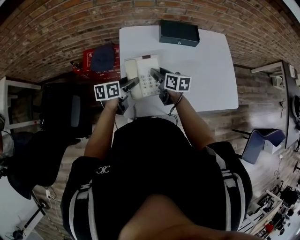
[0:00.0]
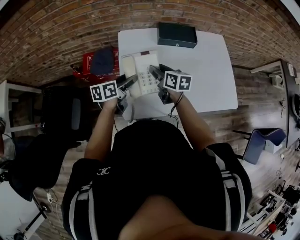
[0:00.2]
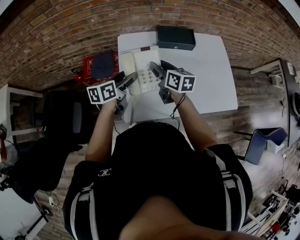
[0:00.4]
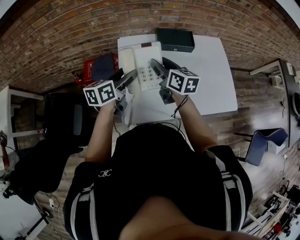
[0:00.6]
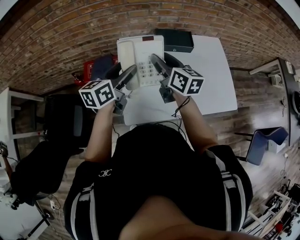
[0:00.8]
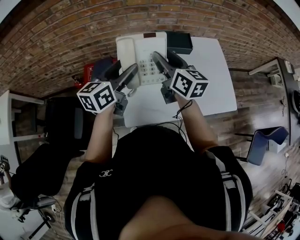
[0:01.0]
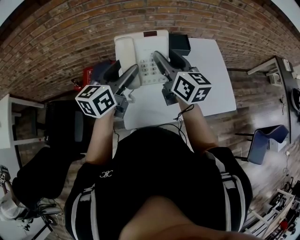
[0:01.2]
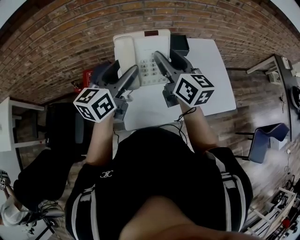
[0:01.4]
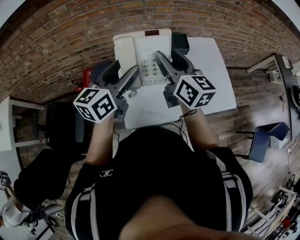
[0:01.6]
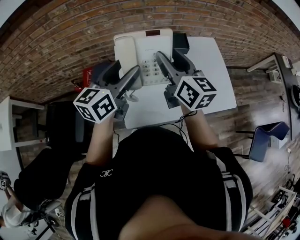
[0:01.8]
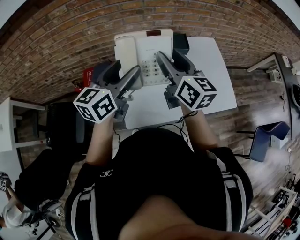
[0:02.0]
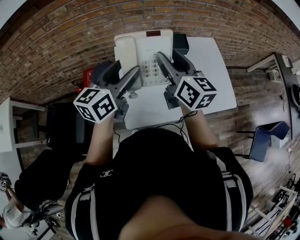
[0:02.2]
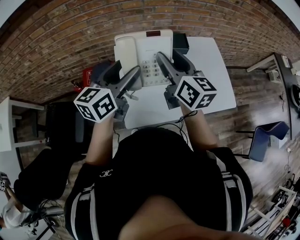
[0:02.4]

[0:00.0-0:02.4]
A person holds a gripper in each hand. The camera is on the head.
0:00.0 to 0:01.2: The two grippers go some 25 cm upward. The left gripper changes its angle by approximately 30 degrees. Meanwhile the right gripper changes its angle by about 30 degrees.
0:01.2 to 0:02.4: The grippers make only small movements.

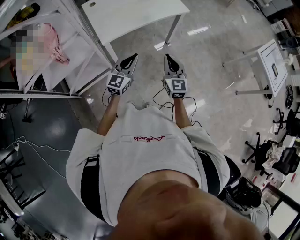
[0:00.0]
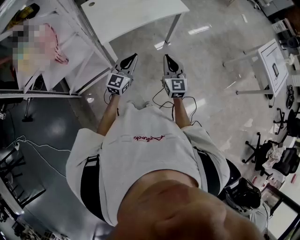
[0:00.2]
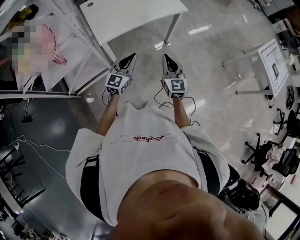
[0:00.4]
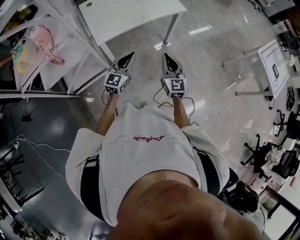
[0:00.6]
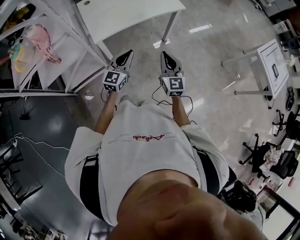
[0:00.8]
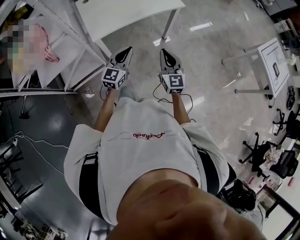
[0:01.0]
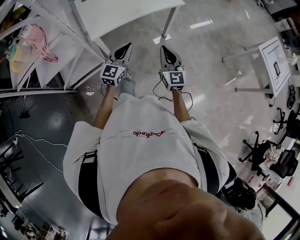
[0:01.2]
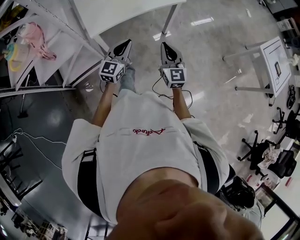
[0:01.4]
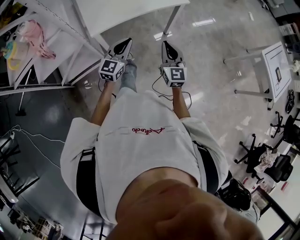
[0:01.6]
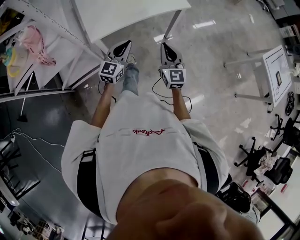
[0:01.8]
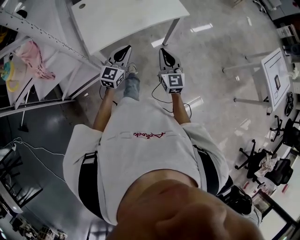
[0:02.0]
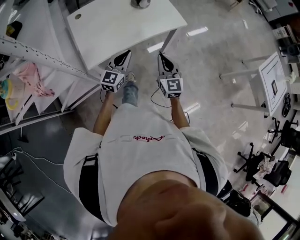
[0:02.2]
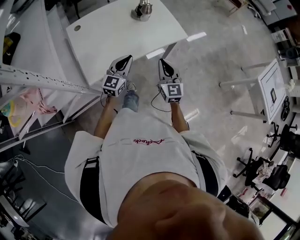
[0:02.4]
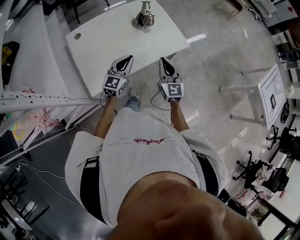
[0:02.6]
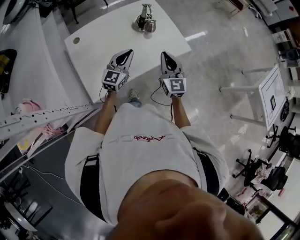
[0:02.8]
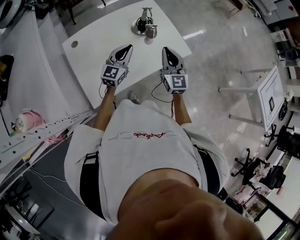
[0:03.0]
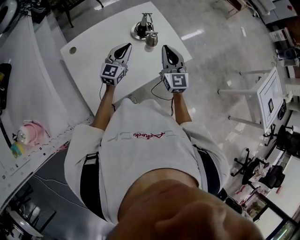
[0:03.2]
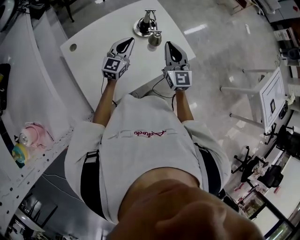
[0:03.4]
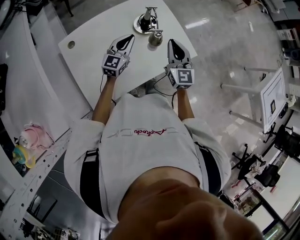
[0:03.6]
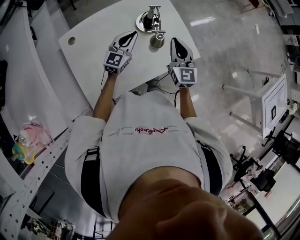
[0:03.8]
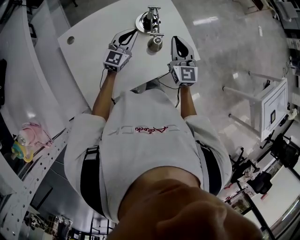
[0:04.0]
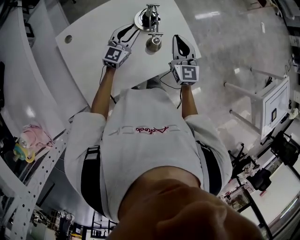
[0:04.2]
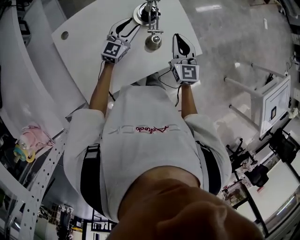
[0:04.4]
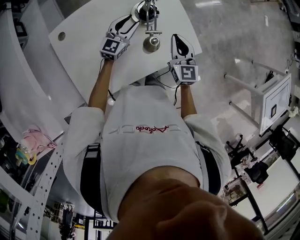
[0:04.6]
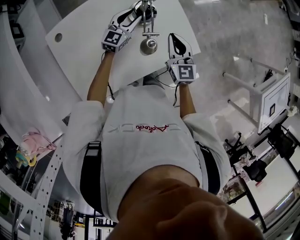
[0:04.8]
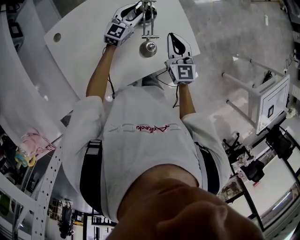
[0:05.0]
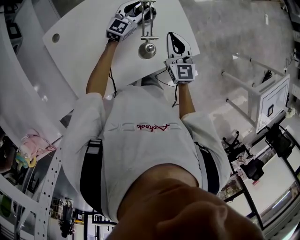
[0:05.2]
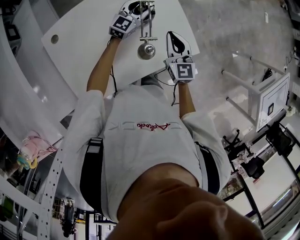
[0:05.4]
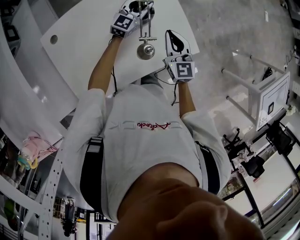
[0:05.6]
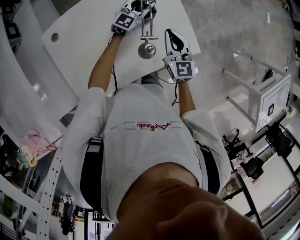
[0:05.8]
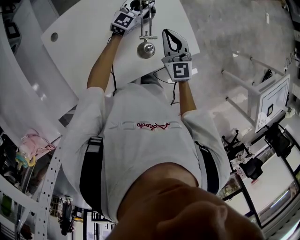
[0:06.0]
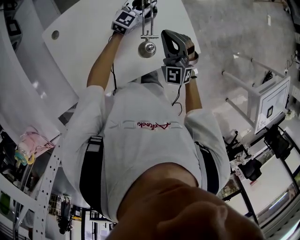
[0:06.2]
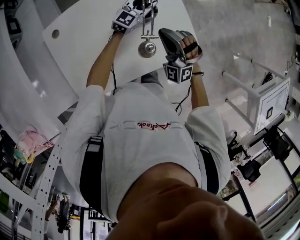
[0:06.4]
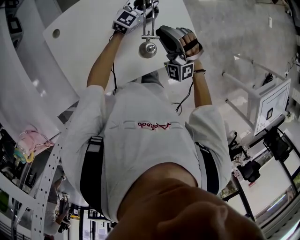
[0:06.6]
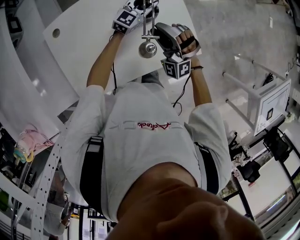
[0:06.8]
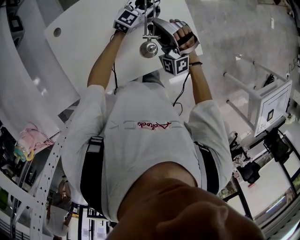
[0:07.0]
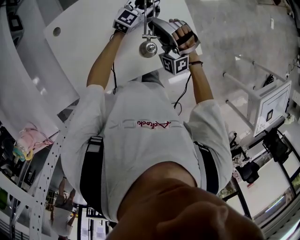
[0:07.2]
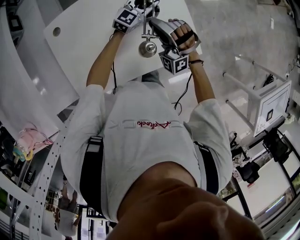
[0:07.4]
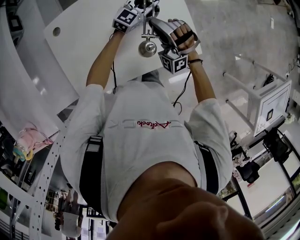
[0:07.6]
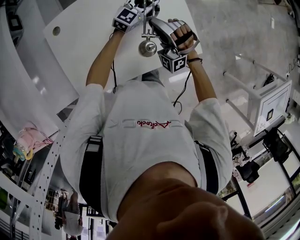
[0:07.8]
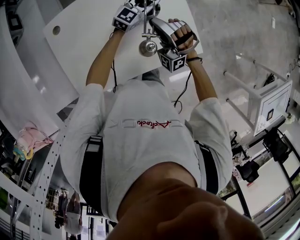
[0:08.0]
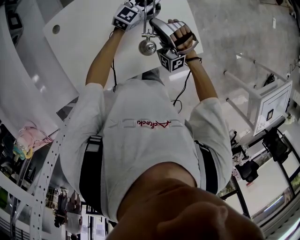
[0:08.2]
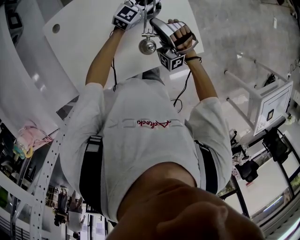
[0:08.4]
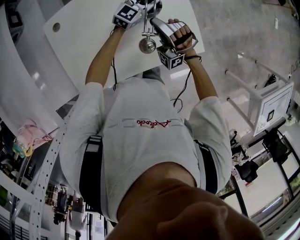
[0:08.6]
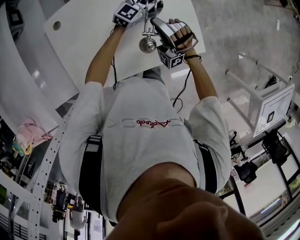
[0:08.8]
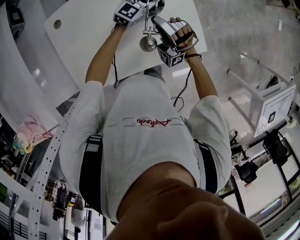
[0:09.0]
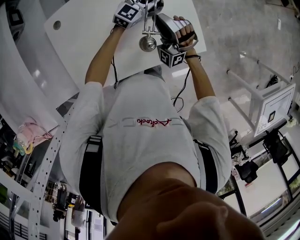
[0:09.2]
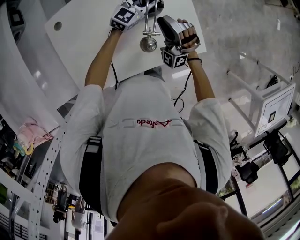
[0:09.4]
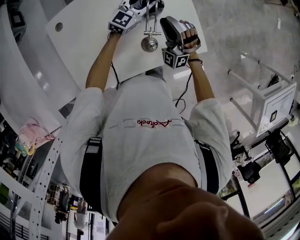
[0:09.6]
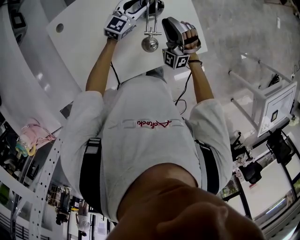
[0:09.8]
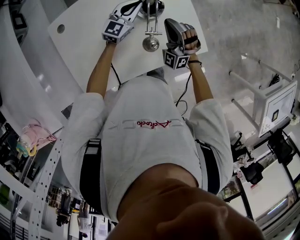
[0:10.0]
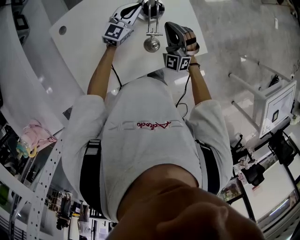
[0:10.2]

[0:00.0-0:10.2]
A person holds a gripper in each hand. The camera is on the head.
0:00.0 to 0:01.4: The right gripper ends up approximately 5 cm from where it was, while the left gripper moves forward, some 5 cm.
0:01.4 to 0:03.0: Both grippers move forward, some 40 cm.
0:03.0 to 0:04.4: Both grippers travel together forward and downward, approximately 15 cm. The left gripper opens.
0:04.4 to 0:05.8: The left gripper travels forward and to the right by about 15 cm.
0:05.8 to 0:07.2: The right gripper heads to the left, covering about 10 cm, rotates around the line of its fingers by approximately 80 degrees, counterclockwise from behind, and opens its fingers.
0:07.2 to 0:08.8: The right gripper closes.
0:08.8 to 0:10.2: The left gripper shifts approximately 10 cm to the left and backward, and closes up; the right gripper moves approximately 5 cm, and turns by approximately 40 degrees.

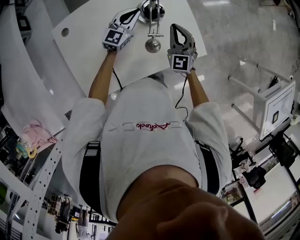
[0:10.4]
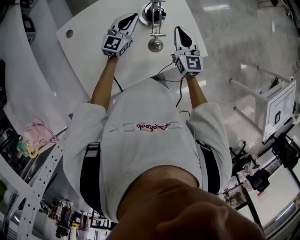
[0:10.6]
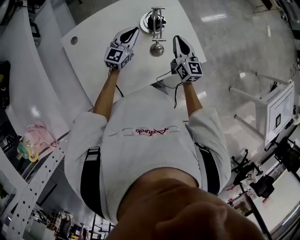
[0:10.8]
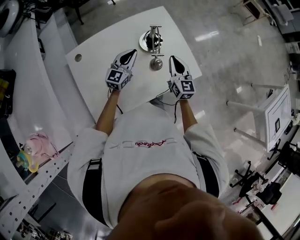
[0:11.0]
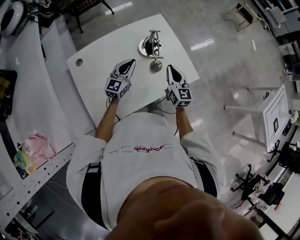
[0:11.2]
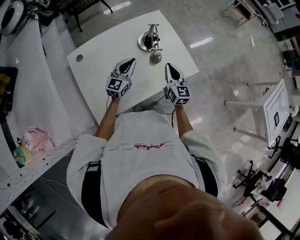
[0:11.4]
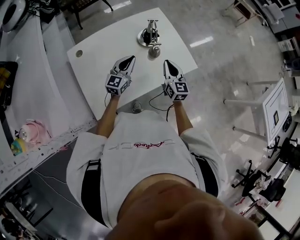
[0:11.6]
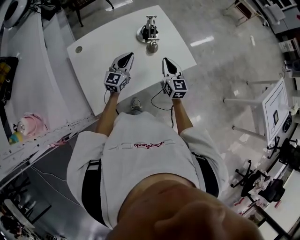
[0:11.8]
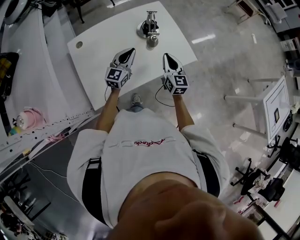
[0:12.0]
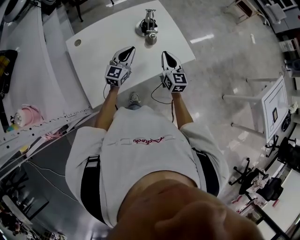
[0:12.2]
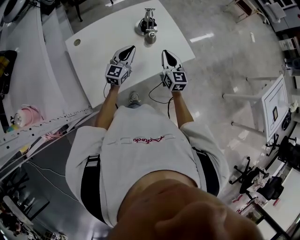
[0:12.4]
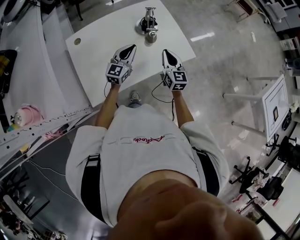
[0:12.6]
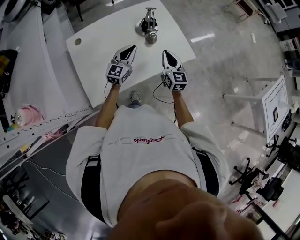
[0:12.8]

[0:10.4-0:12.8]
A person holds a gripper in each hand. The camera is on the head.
0:10.4 to 0:11.6: The grippers both shift backward by some 15 cm. The right gripper rotates roughly 30 degrees.
0:11.6 to 0:12.8: The grippers move only a little.

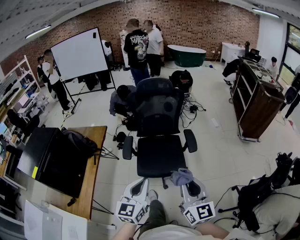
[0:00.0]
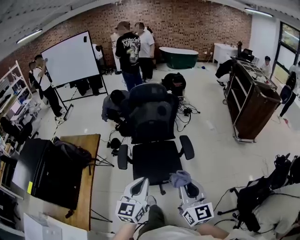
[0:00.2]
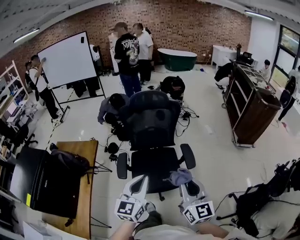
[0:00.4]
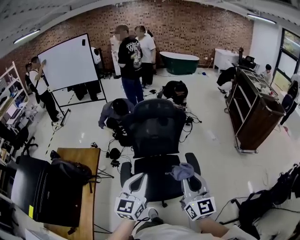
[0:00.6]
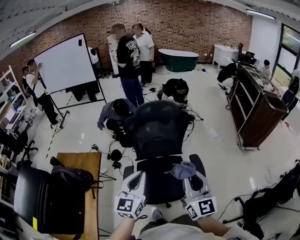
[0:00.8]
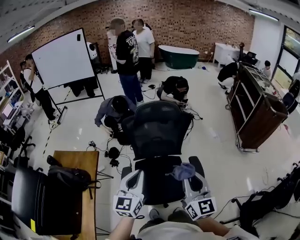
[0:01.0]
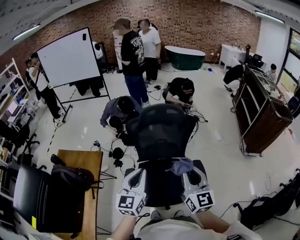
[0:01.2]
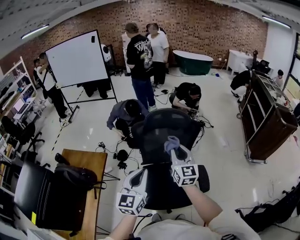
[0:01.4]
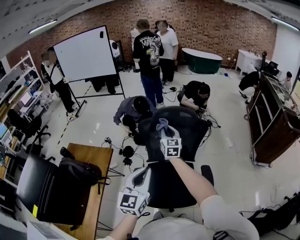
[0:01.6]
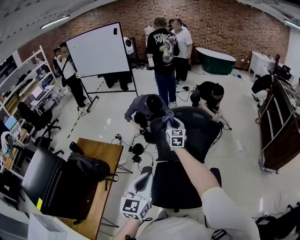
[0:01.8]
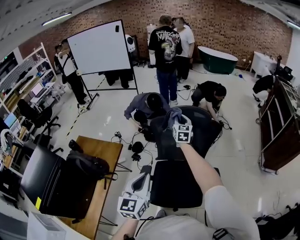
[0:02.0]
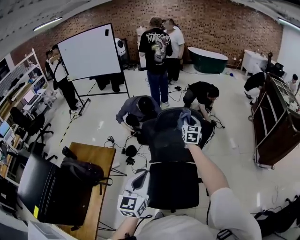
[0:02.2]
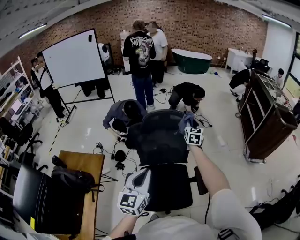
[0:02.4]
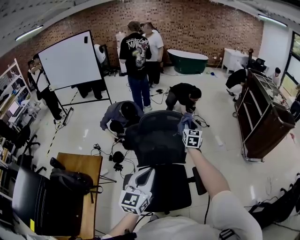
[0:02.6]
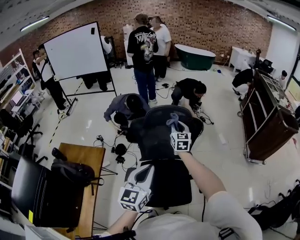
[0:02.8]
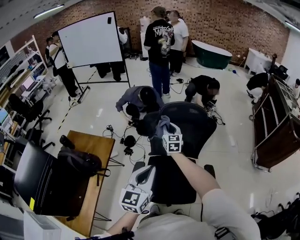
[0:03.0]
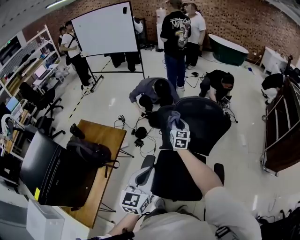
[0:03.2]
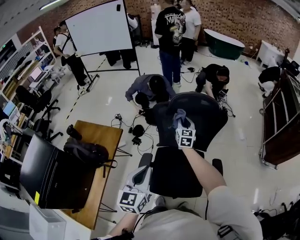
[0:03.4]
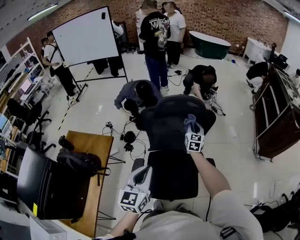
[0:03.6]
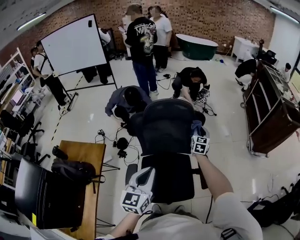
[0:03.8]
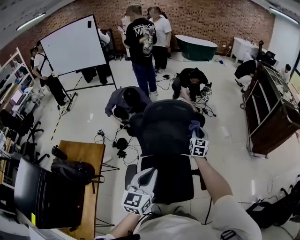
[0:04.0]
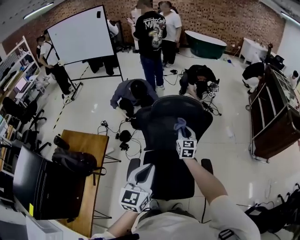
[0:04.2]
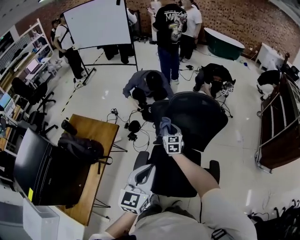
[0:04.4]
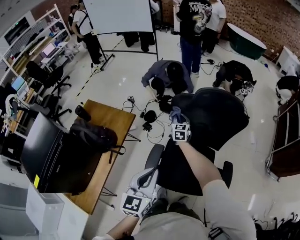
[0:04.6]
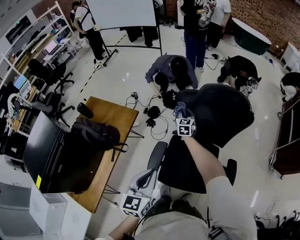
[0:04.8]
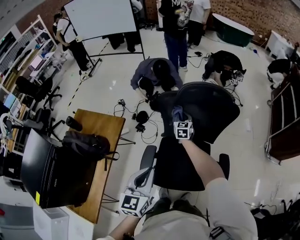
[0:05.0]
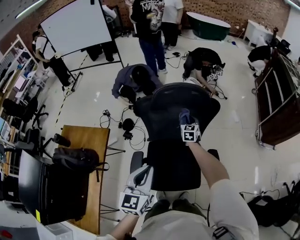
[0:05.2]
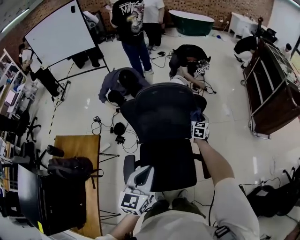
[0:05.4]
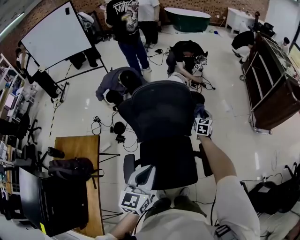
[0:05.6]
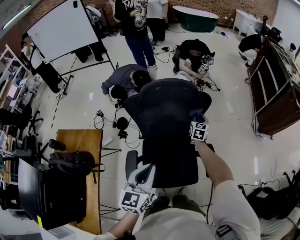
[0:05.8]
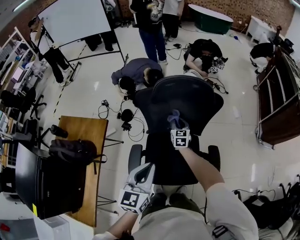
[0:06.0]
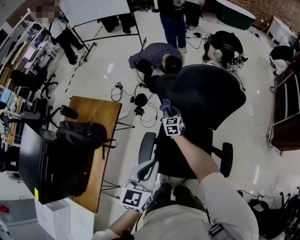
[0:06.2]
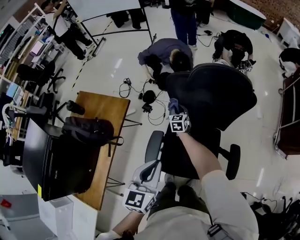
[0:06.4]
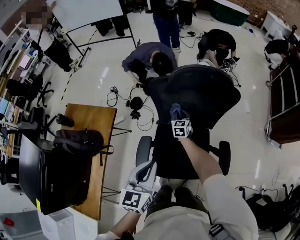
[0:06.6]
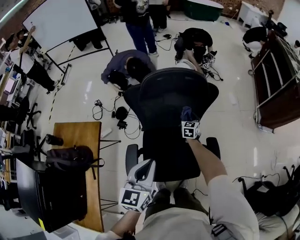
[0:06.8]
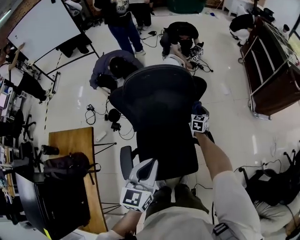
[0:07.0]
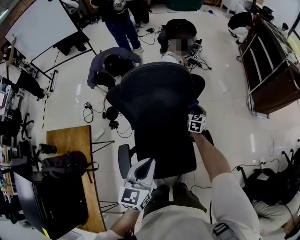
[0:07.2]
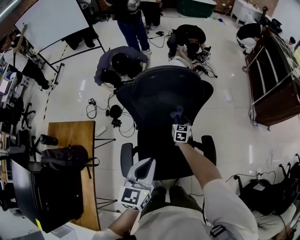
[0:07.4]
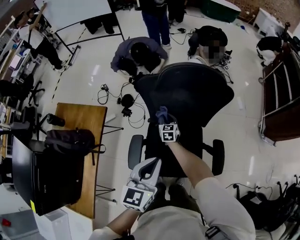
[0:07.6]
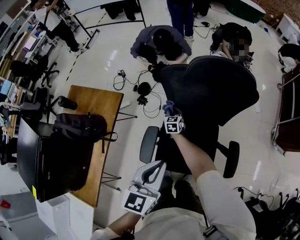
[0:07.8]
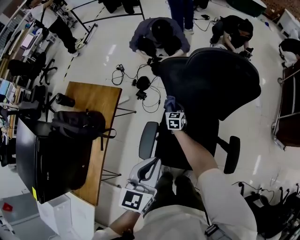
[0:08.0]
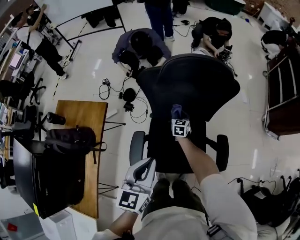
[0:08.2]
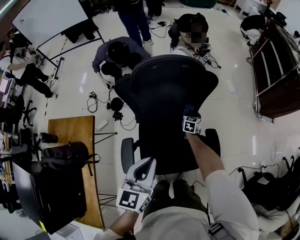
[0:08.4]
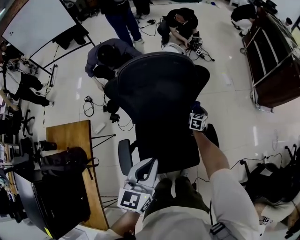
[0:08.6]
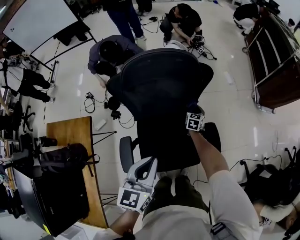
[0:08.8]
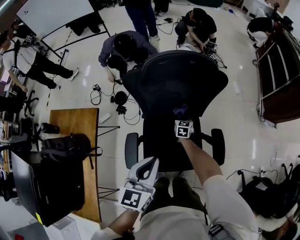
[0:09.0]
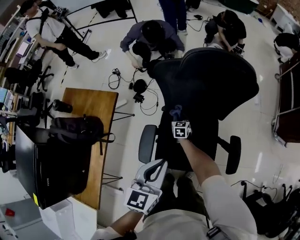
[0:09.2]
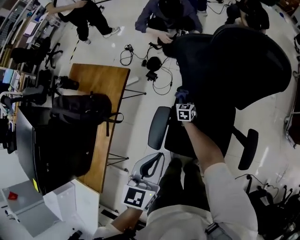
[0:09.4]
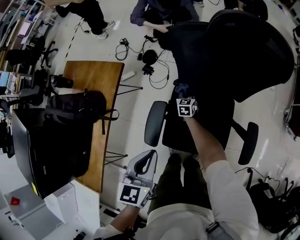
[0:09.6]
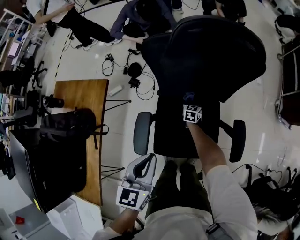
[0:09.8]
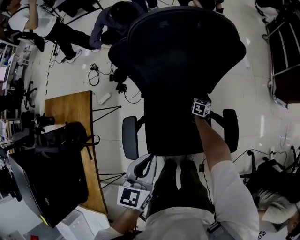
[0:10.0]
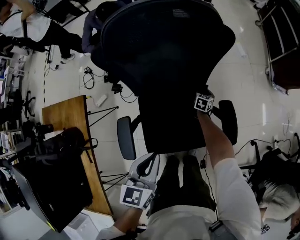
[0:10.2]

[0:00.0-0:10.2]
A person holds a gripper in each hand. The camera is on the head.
0:00.0 to 0:01.4: The left gripper goes approximately 30 cm forward, while the right gripper moves forward, about 50 cm.
0:01.4 to 0:03.0: The right gripper heads forward and downward, covering approximately 25 cm; the left gripper heads forward, covering about 5 cm.
0:03.0 to 0:04.4: The right gripper travels downward by roughly 5 cm, and moves about 25 cm to the right and comes back.
0:04.4 to 0:05.8: The right gripper shifts by some 30 cm, and changes its angle by some 30 degrees. Meanwhile the left gripper shifts by some 10 cm.
0:05.8 to 0:07.2: The left gripper changes place by about 10 cm, while the right gripper shifts some 10 cm downward.
0:07.2 to 0:08.8: The right gripper shifts some 5 cm downward.
0:08.8 to 0:10.2: Both grippers move downward, about 15 cm.
